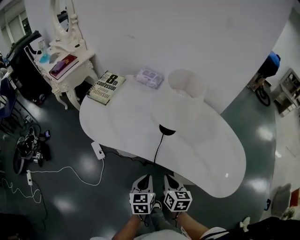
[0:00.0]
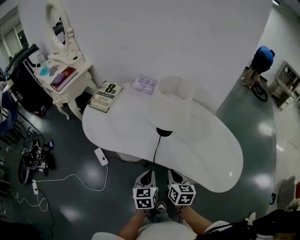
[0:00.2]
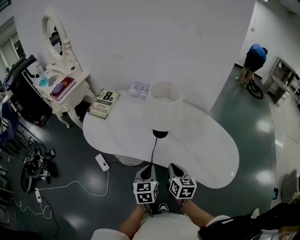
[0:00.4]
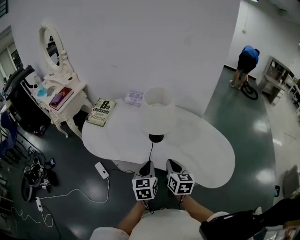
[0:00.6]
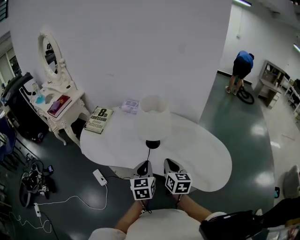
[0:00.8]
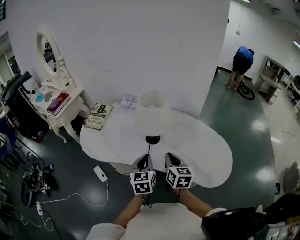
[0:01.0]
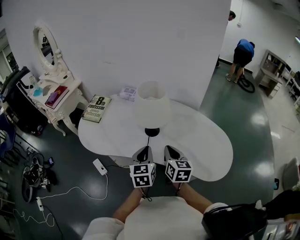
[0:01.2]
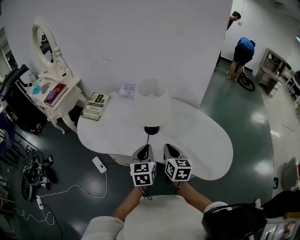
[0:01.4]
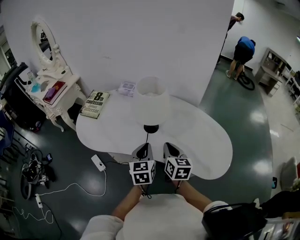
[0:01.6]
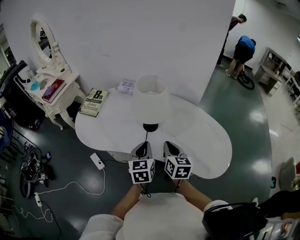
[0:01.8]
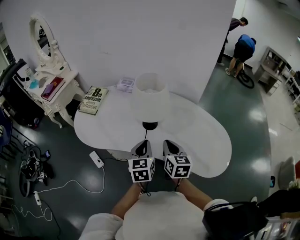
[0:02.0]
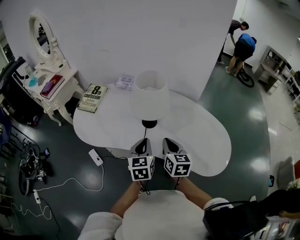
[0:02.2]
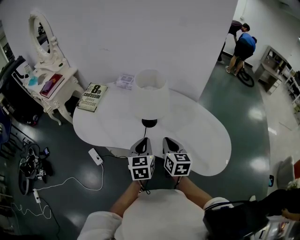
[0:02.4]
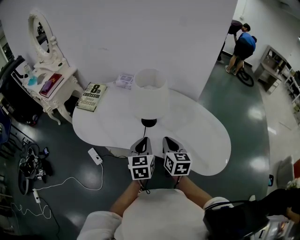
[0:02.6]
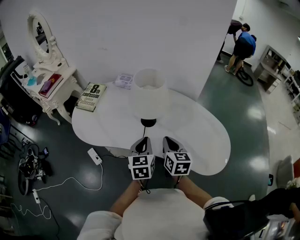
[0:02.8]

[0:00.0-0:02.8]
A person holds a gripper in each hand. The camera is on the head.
0:00.0 to 0:01.4: The grippers both shift upward and forward by some 20 cm.
0:01.4 to 0:02.8: There are only small adjustments of the grippers.

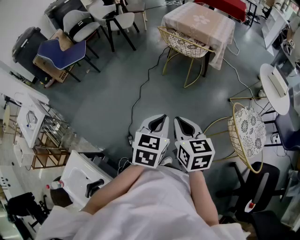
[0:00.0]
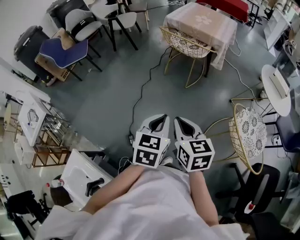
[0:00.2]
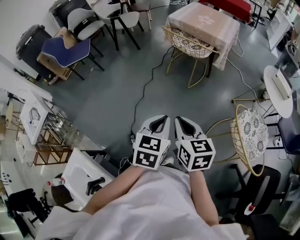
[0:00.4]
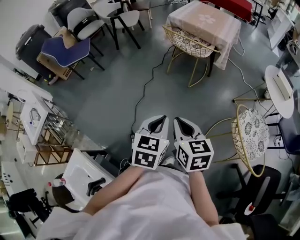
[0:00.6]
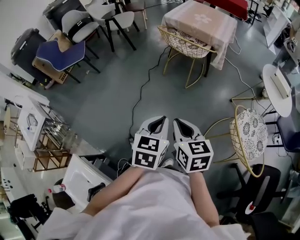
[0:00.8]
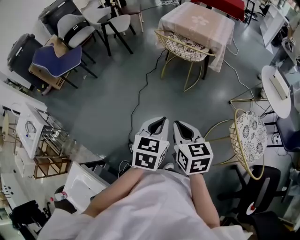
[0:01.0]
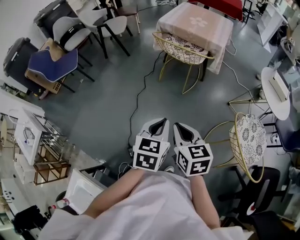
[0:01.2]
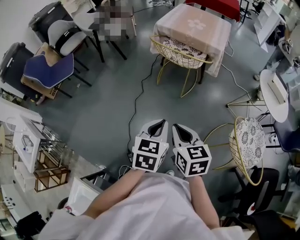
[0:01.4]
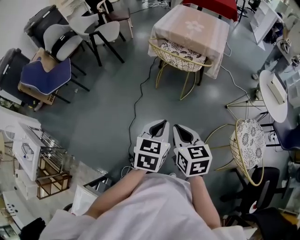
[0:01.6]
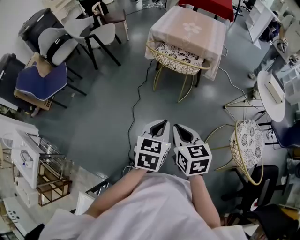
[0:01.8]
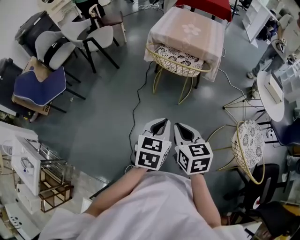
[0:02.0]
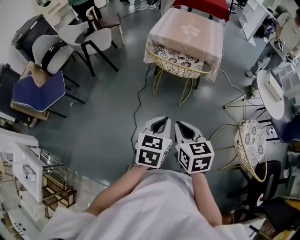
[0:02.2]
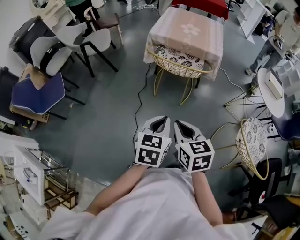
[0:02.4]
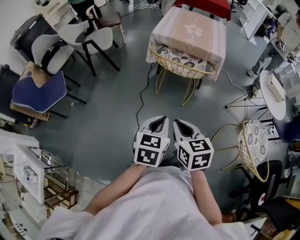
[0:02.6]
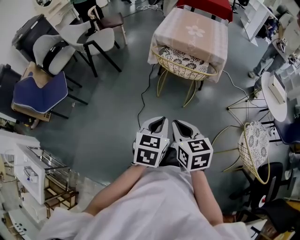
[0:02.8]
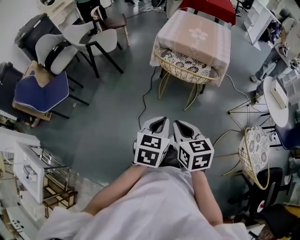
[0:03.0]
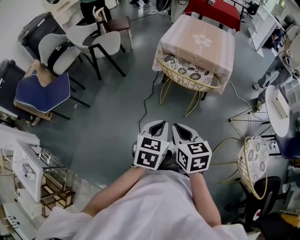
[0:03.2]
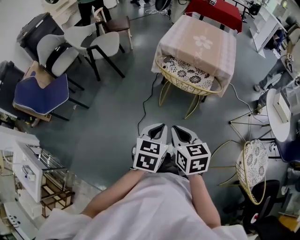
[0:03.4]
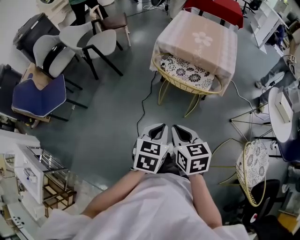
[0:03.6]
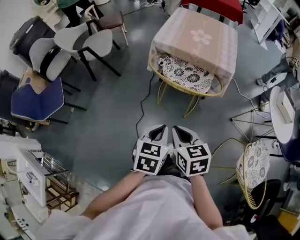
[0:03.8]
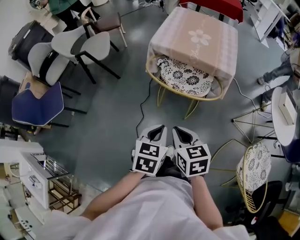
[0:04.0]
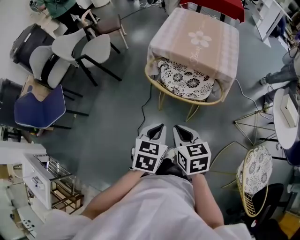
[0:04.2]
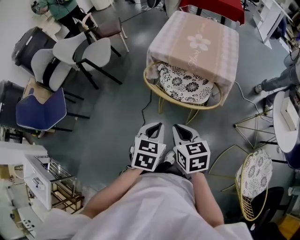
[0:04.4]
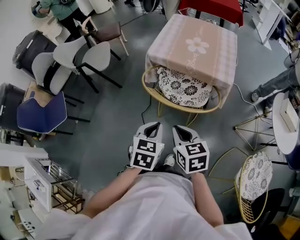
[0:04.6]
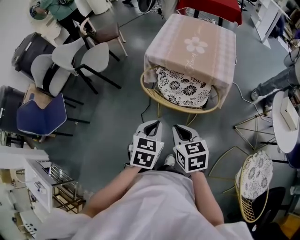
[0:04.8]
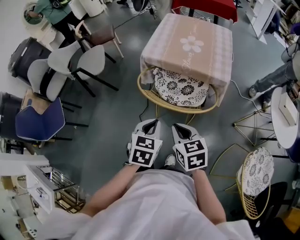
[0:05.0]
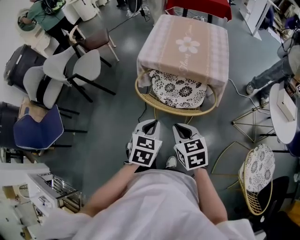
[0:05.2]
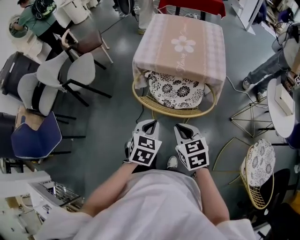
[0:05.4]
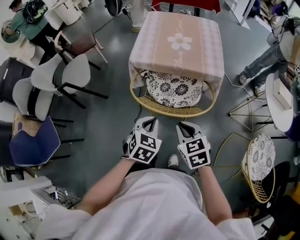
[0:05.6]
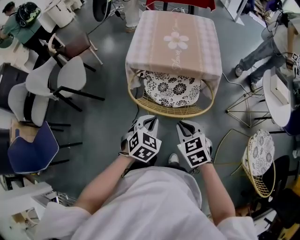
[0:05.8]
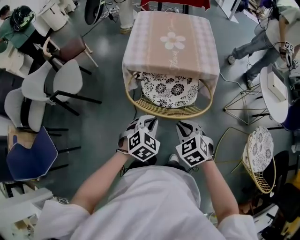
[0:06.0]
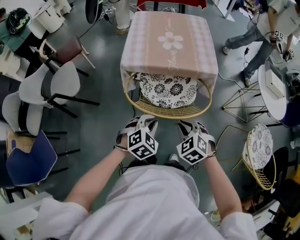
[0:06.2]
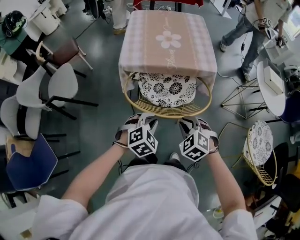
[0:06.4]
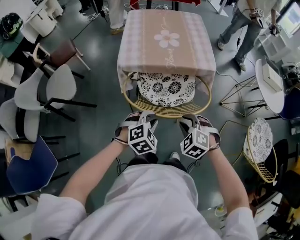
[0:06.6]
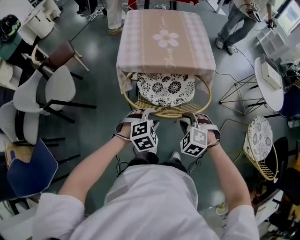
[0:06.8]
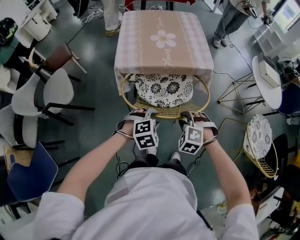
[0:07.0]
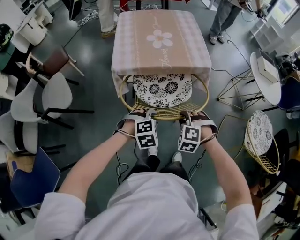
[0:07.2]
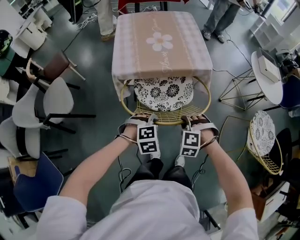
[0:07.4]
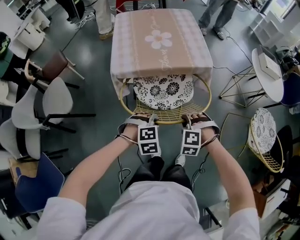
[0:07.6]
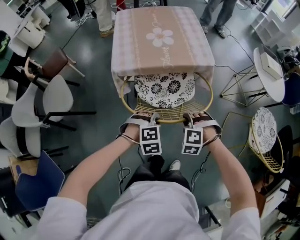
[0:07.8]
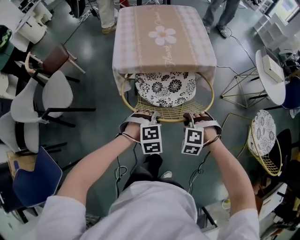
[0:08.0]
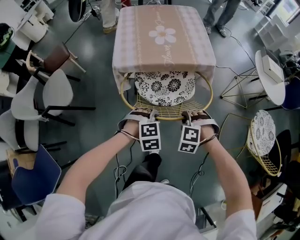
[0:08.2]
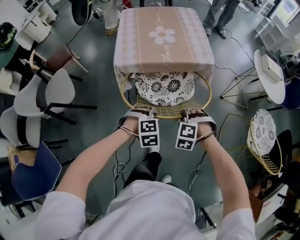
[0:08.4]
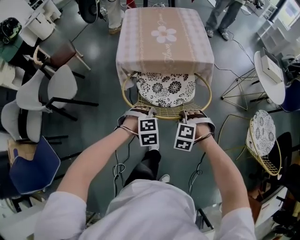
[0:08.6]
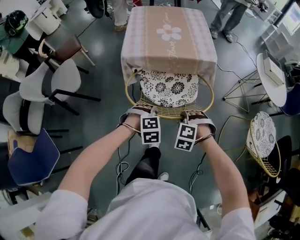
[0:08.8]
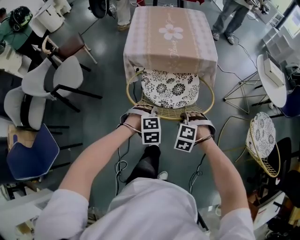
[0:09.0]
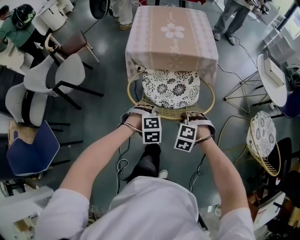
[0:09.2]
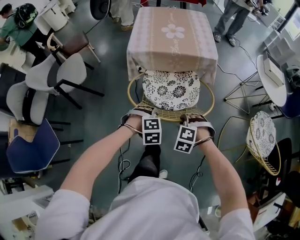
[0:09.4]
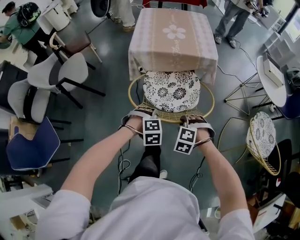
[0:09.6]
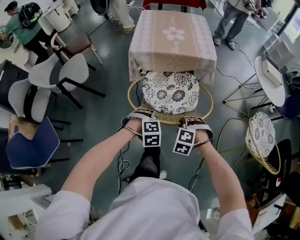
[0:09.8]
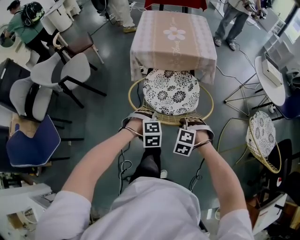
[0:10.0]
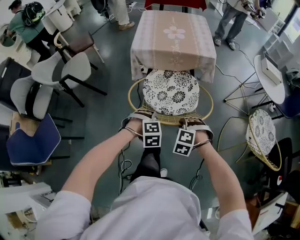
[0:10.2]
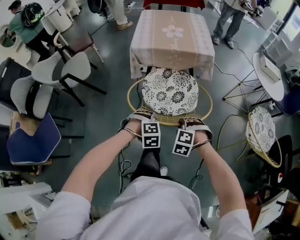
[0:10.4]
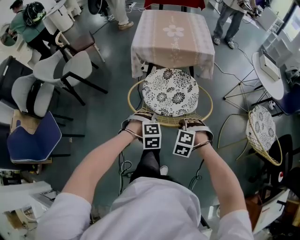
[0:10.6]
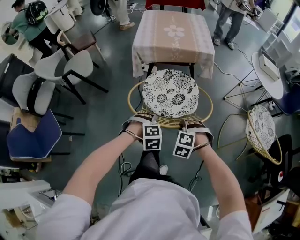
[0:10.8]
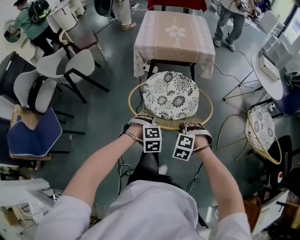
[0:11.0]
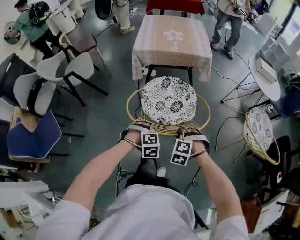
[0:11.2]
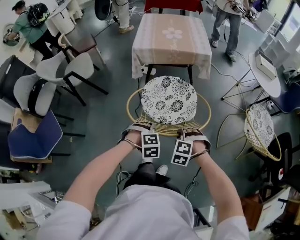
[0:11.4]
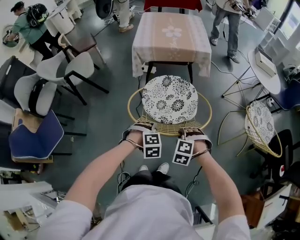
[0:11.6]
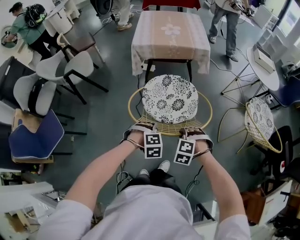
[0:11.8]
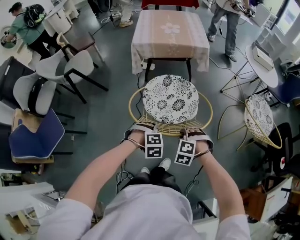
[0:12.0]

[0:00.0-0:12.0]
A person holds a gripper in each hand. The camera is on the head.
0:00.0 to 0:01.6: The two grippers go about 15 cm forward.
0:01.6 to 0:03.0: Both grippers travel together forward and to the left, roughly 15 cm.
0:03.0 to 0:04.4: The grippers both shift forward by about 20 cm.
0:04.4 to 0:06.0: The grippers both shift forward and downward by approximately 10 cm. The left gripper twists some 40 degrees clockwise, seen from behind, while the right gripper turns by some 30 degrees.
0:06.0 to 0:07.6: The grippers both shift downward by some 10 cm. The right gripper swivels roughly 50 degrees. Meanwhile the left gripper twists about 40 degrees clockwise, seen from behind.
0:07.6 to 0:09.0: The grippers both shift backward by roughly 10 cm.
0:09.0 to 0:10.4: Both grippers move backward, about 15 cm.
0:10.4 to 0:12.0: Both grippers move backward, approximately 15 cm.

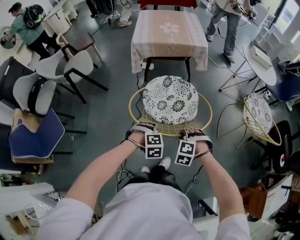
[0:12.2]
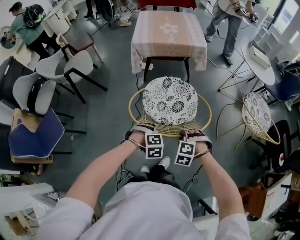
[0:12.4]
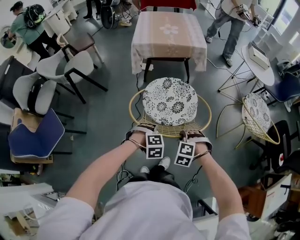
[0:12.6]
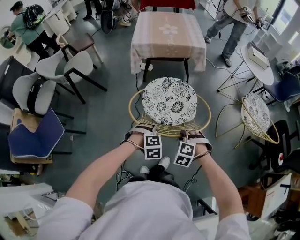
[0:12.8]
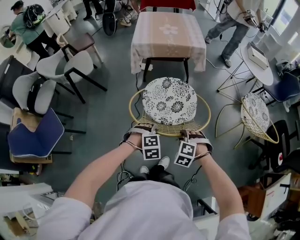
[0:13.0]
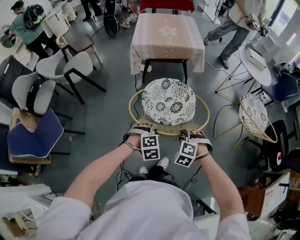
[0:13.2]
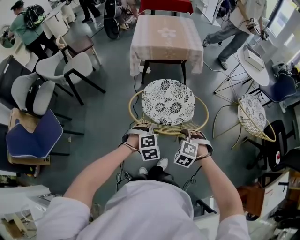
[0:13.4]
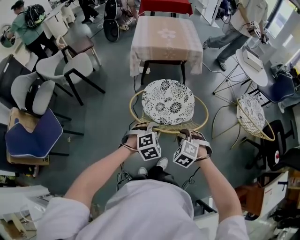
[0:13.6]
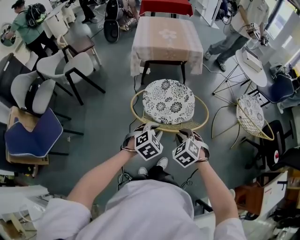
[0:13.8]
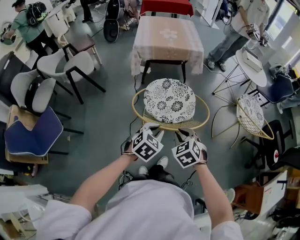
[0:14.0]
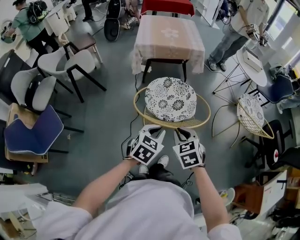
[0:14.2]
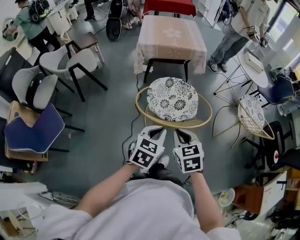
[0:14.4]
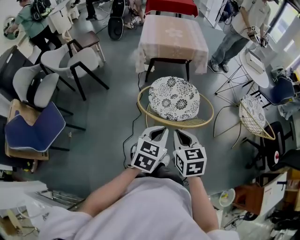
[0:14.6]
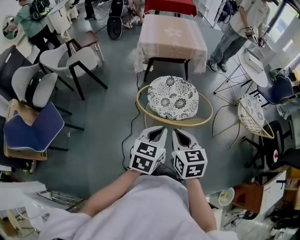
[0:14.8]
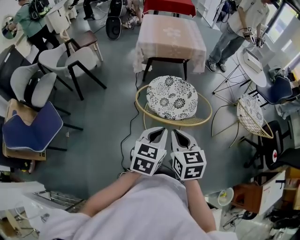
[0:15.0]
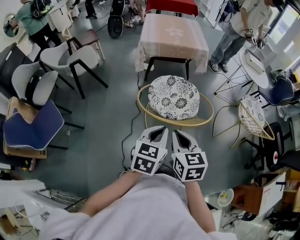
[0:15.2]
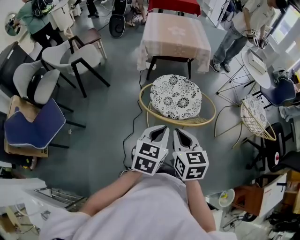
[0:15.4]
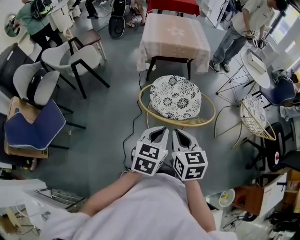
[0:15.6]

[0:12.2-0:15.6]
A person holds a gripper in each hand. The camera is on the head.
0:12.2 to 0:13.8: Both grippers travel together upward, about 10 cm. The right gripper turns by roughly 30 degrees. Meanwhile the left gripper swivels some 40 degrees.
0:13.8 to 0:15.6: The left gripper travels upward and backward by about 10 cm, and swivels approximately 40 degrees. The right gripper heads upward, to the left and backward, covering about 15 cm, and rotates around the line of its fingers by roughly 40 degrees, clockwise from behind.

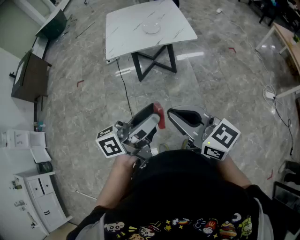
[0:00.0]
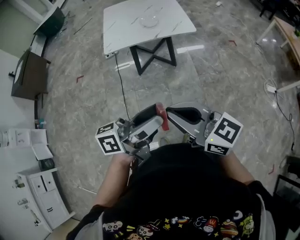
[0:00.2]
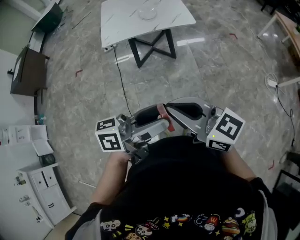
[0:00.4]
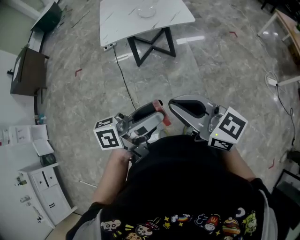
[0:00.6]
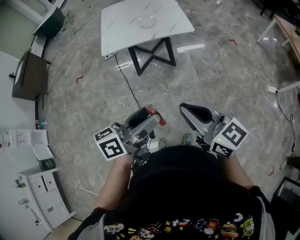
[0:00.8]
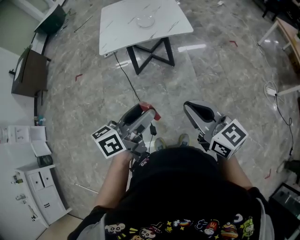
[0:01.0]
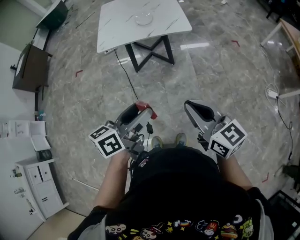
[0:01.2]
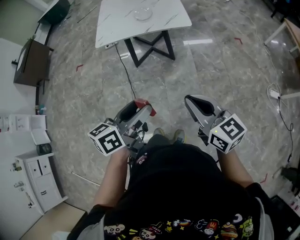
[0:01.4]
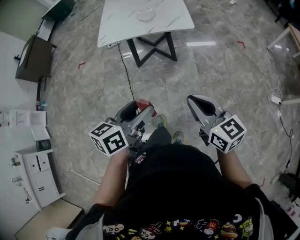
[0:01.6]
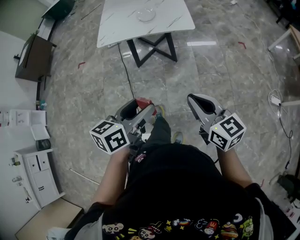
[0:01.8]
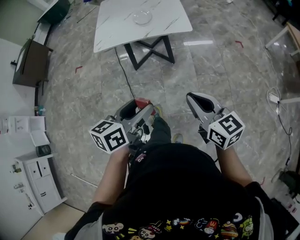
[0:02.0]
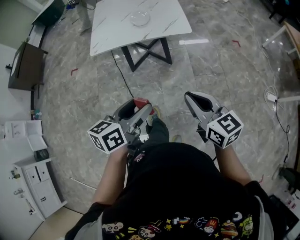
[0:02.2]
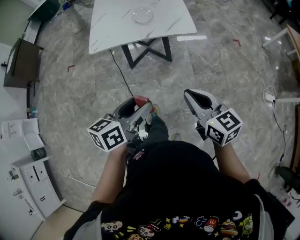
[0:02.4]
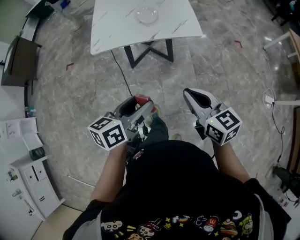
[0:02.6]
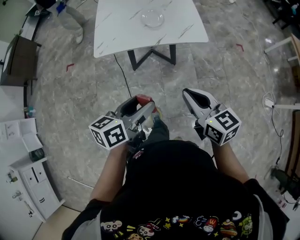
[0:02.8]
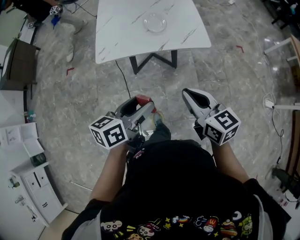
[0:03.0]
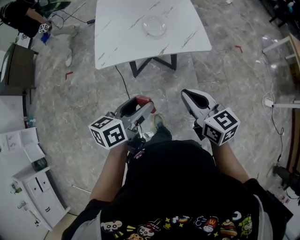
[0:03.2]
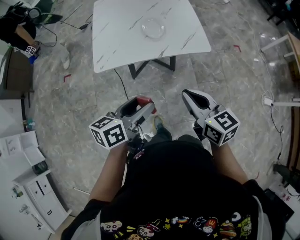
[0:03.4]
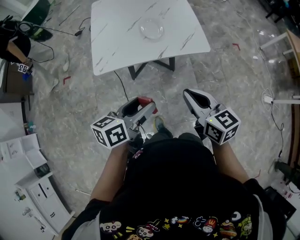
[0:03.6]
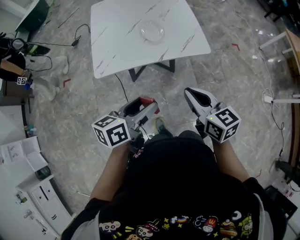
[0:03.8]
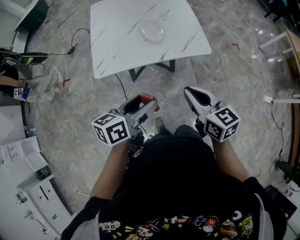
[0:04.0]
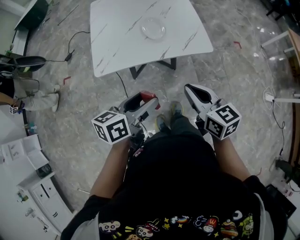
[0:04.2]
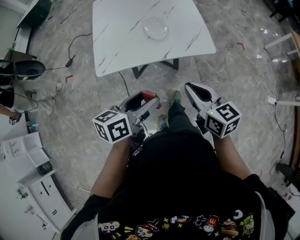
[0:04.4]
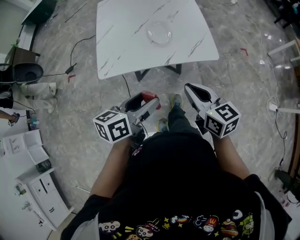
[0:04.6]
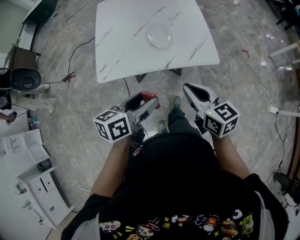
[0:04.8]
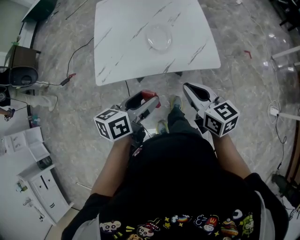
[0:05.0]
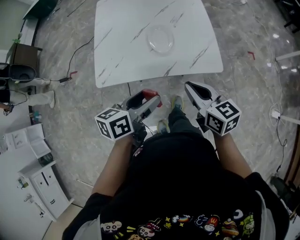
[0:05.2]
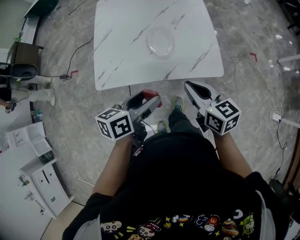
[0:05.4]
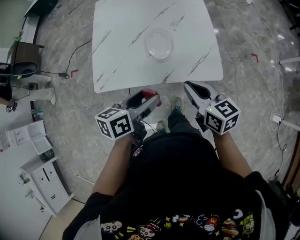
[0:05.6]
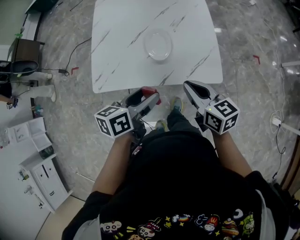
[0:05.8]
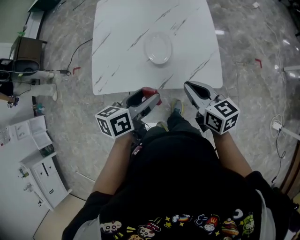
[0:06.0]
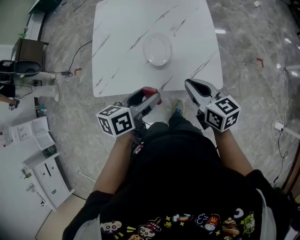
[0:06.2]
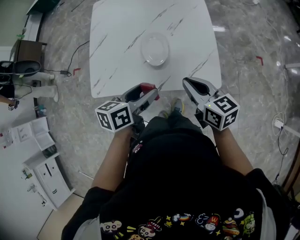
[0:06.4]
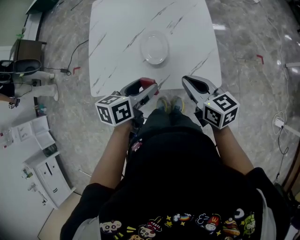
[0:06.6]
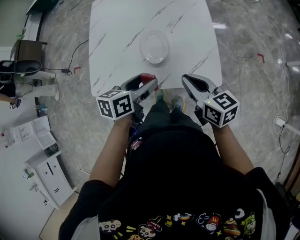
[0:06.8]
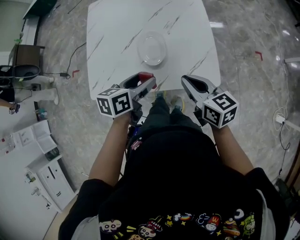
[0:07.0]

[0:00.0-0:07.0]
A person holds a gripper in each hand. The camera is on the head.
0:00.0 to 0:01.4: The right gripper travels to the right and downward by about 20 cm. Meanwhile the left gripper moves to the right and downward, some 15 cm, and changes its angle by approximately 30 degrees.
0:01.4 to 0:02.8: The two grippers go some 25 cm forward and to the left.
0:02.8 to 0:04.2: The two grippers go roughly 10 cm forward.
0:04.2 to 0:05.6: The two grippers go roughly 20 cm forward.
0:05.6 to 0:07.0: The right gripper moves forward, approximately 5 cm; the left gripper heads forward, covering roughly 10 cm.
